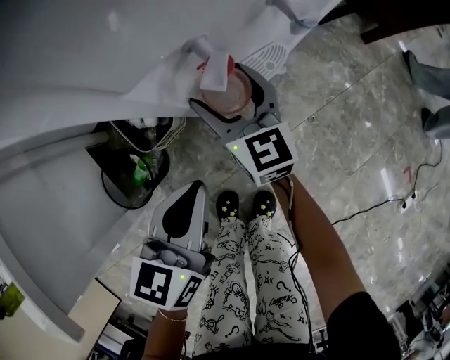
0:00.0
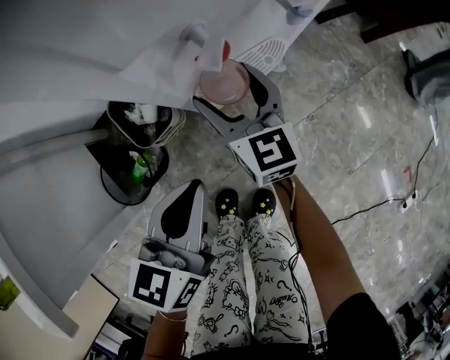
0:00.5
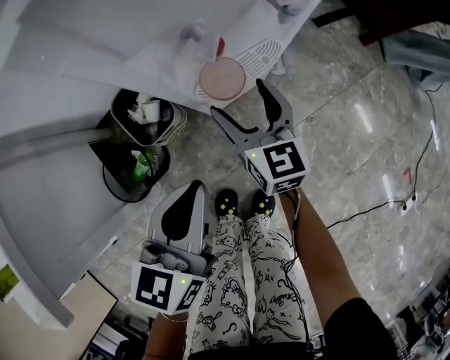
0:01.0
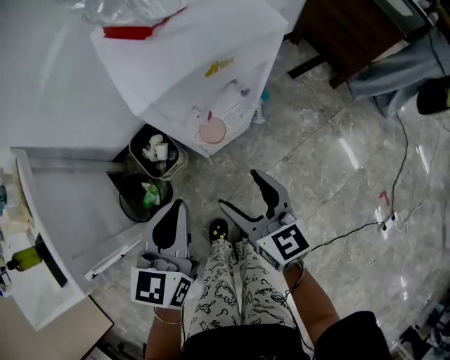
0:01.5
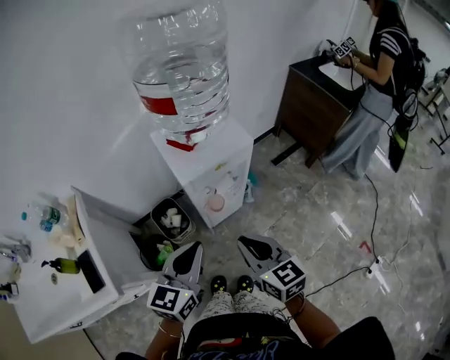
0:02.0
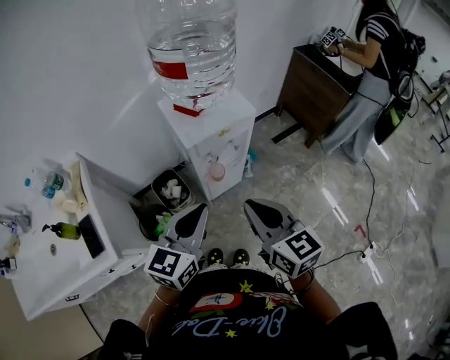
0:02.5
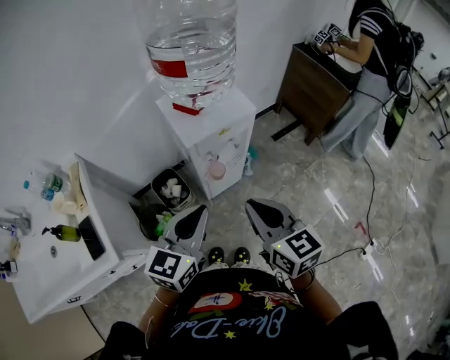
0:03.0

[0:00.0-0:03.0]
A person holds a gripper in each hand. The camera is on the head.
0:00.0 to 0:01.5: The right gripper goes approximately 25 cm backward and upward, while the left gripper is displaced upward by some 15 cm.
0:01.5 to 0:03.0: The right gripper is displaced upward by some 30 cm, and closes up; the left gripper is displaced upward and backward by some 25 cm.

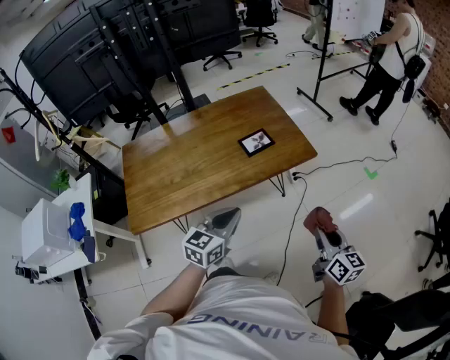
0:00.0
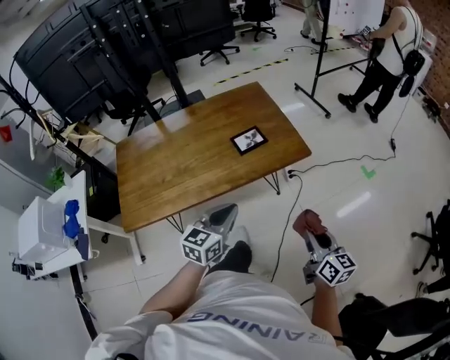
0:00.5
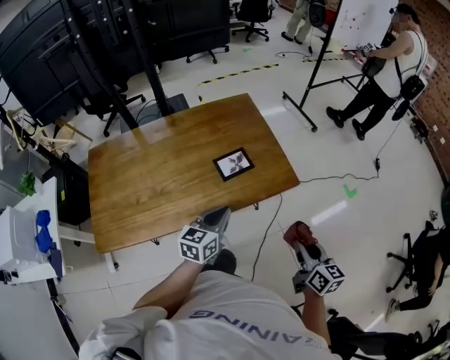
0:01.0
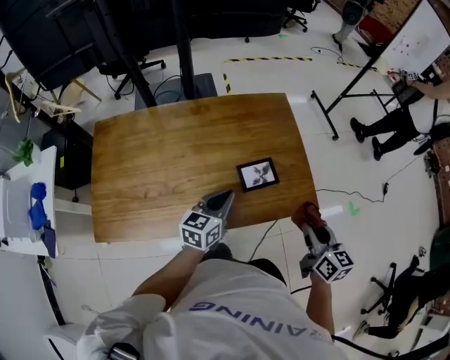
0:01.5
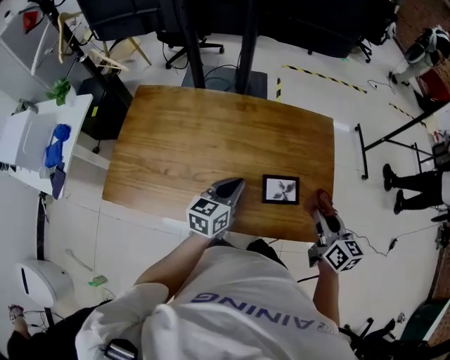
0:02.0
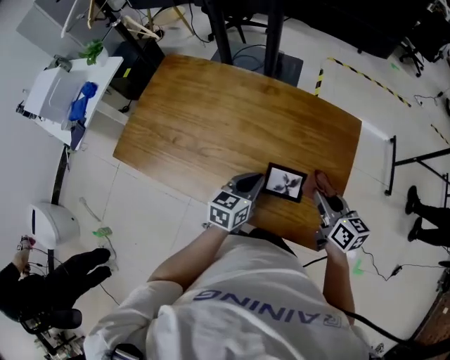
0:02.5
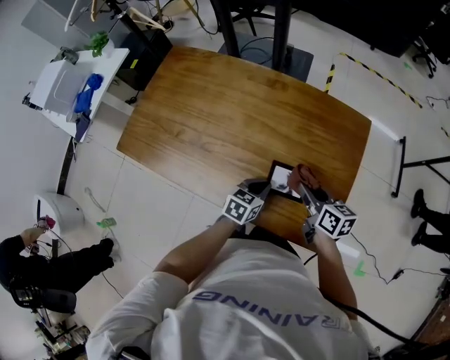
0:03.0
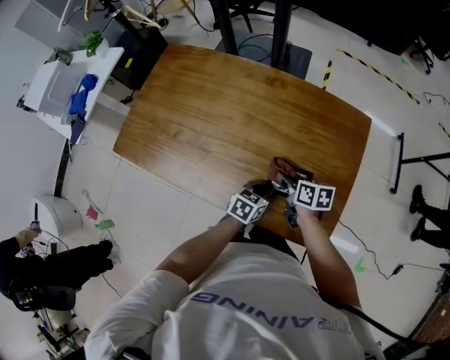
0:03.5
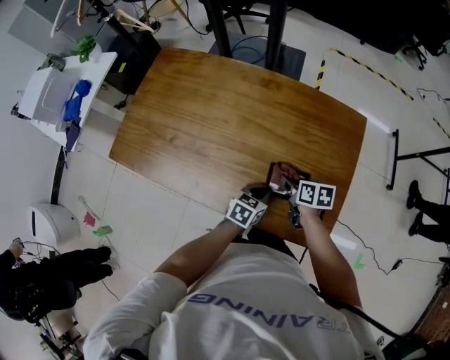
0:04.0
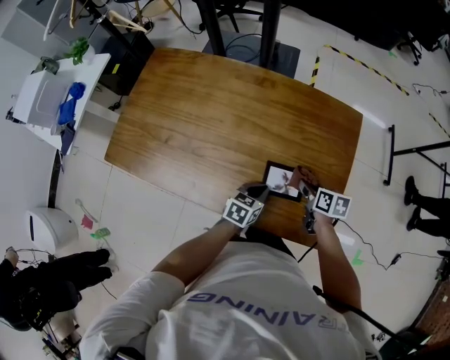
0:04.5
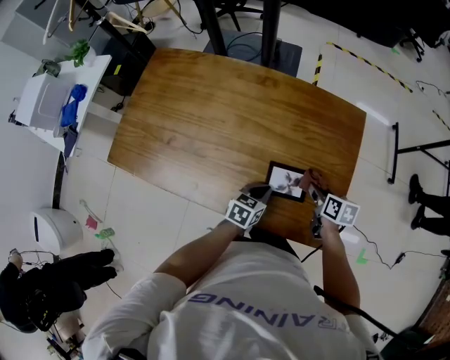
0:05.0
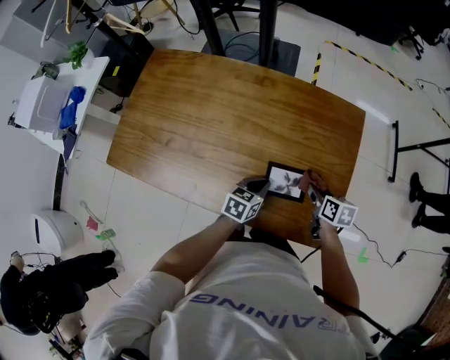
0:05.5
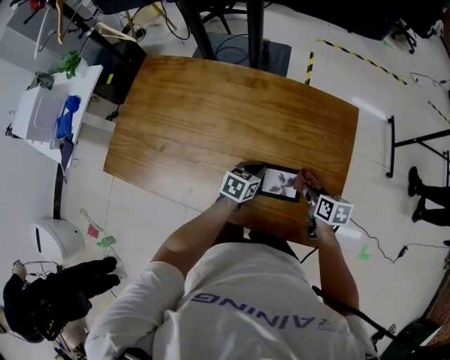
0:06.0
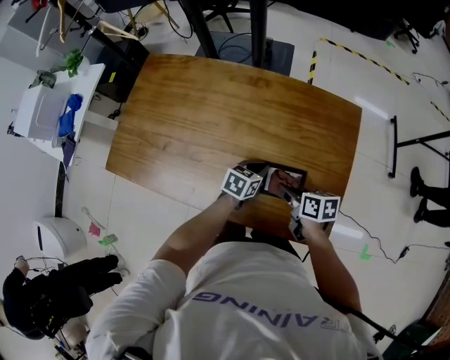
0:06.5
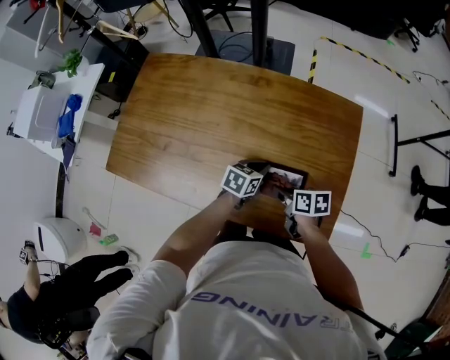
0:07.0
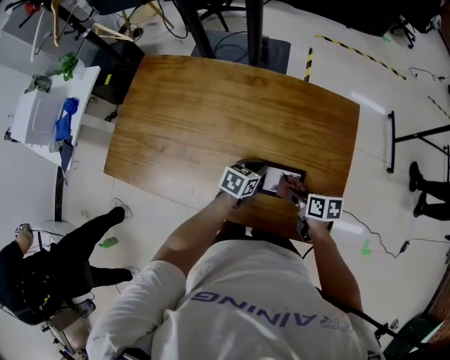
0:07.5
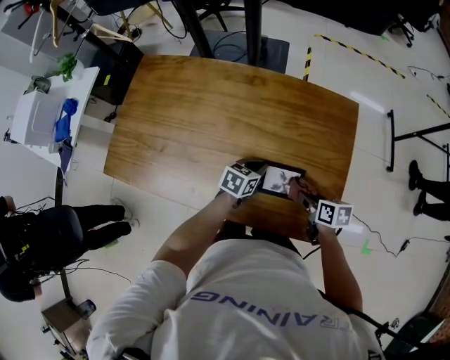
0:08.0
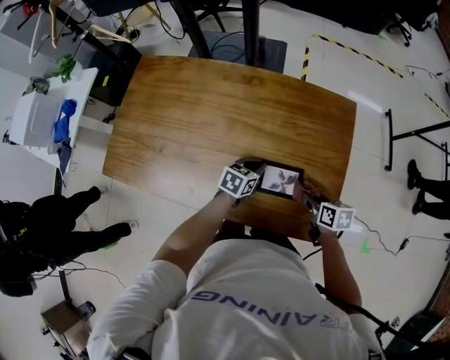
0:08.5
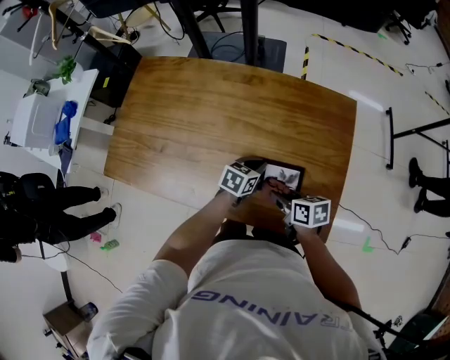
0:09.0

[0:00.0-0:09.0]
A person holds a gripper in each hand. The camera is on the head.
0:00.0 to 0:02.0: The left gripper ends up roughly 35 cm from where it was, and rotates about 40 degrees, while the right gripper shifts by some 40 cm, and swivels approximately 30 degrees.
0:02.0 to 0:04.5: The right gripper heads downward and forward, covering some 20 cm, and swivels some 40 degrees. Meanwhile the left gripper shifts approximately 20 cm downward and to the right, and turns by roughly 20 degrees.
0:04.5 to 0:07.0: The left gripper goes approximately 10 cm forward, while the right gripper is displaced to the left by some 10 cm.
0:07.0 to 0:09.0: The right gripper travels to the right and back again, some 15 cm each way.

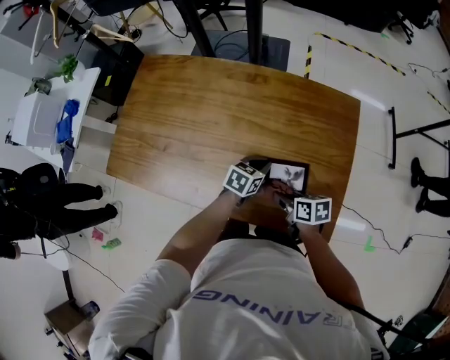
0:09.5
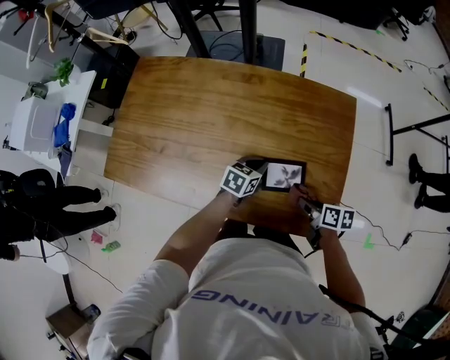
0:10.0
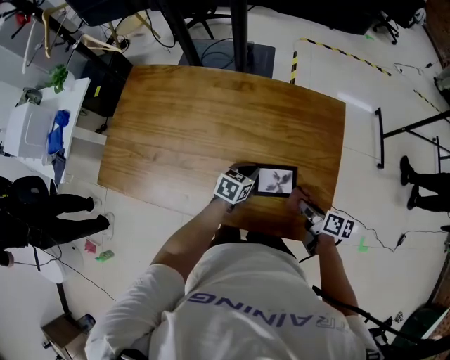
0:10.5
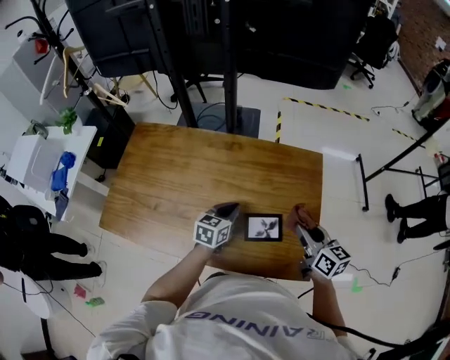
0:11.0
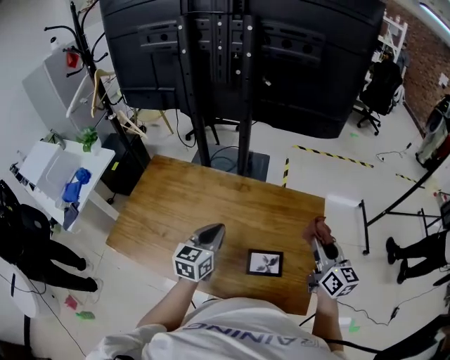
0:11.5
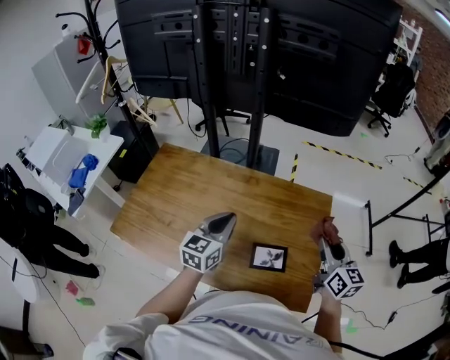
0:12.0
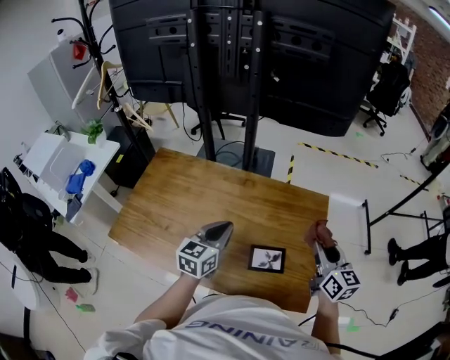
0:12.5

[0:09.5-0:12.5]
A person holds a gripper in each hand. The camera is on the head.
0:09.5 to 0:11.0: The left gripper travels upward by approximately 10 cm, while the right gripper is displaced upward and to the right by about 20 cm, and turns by approximately 40 degrees.
0:11.0 to 0:12.5: The left gripper travels upward by some 15 cm, while the right gripper travels upward by approximately 10 cm.

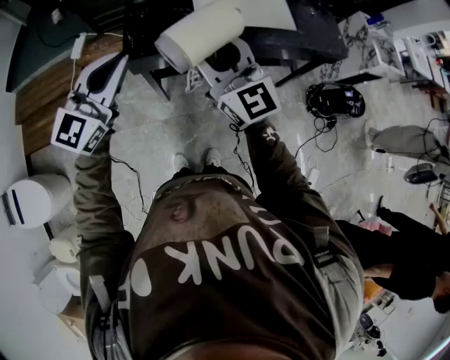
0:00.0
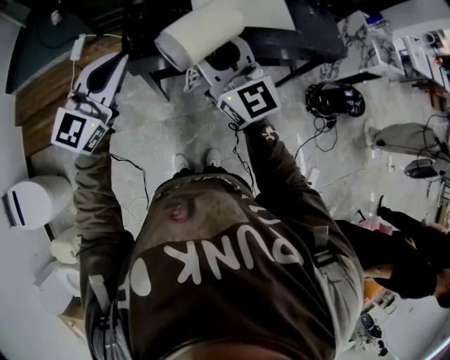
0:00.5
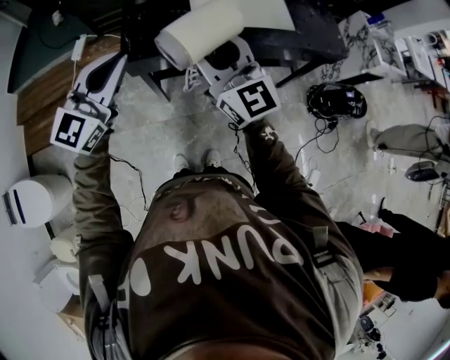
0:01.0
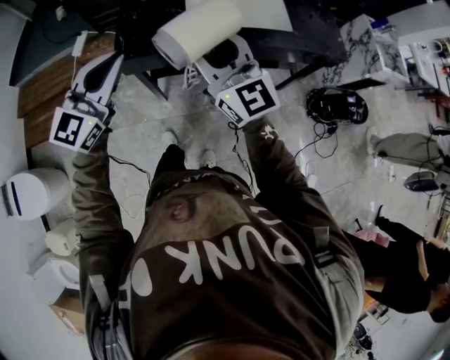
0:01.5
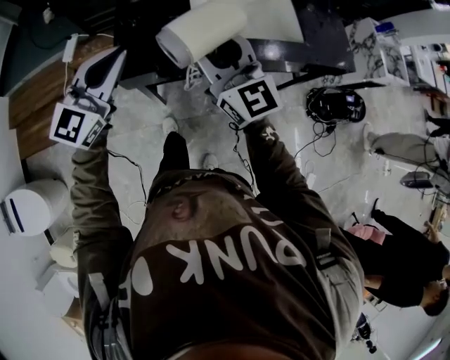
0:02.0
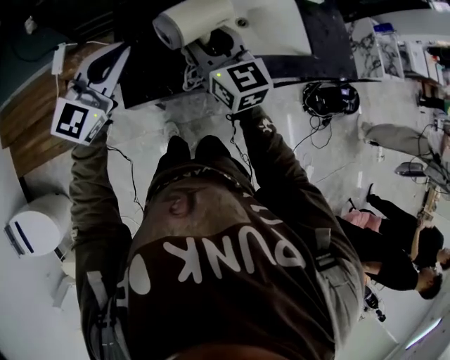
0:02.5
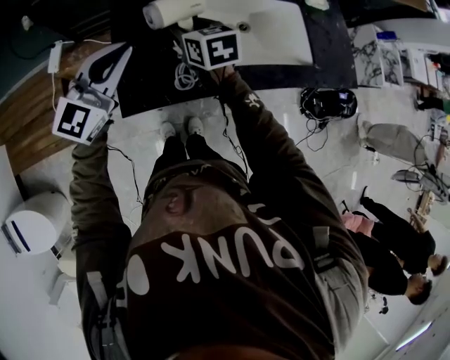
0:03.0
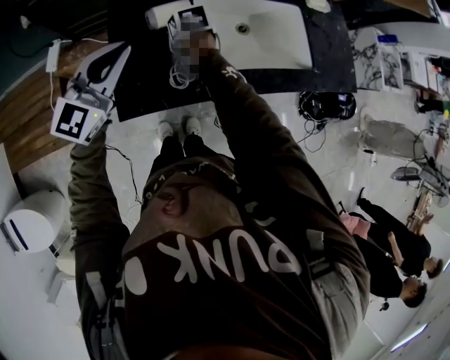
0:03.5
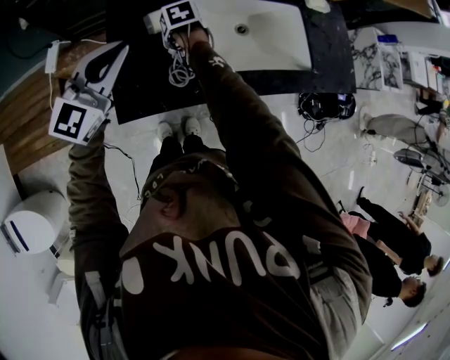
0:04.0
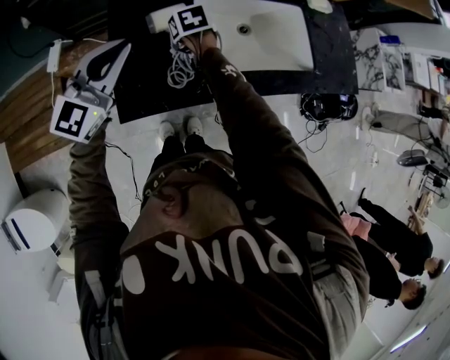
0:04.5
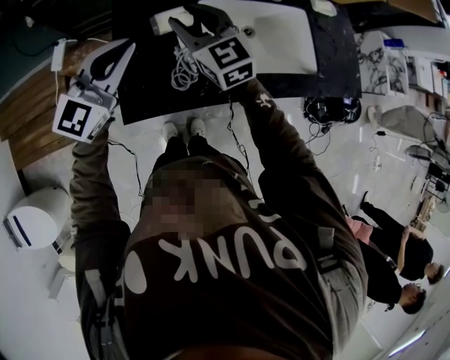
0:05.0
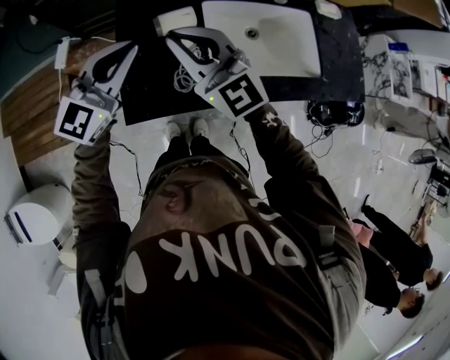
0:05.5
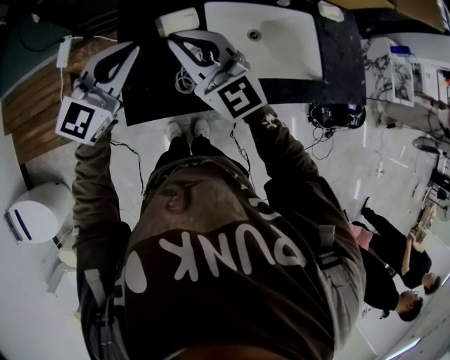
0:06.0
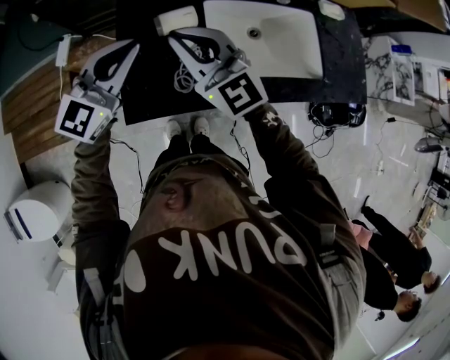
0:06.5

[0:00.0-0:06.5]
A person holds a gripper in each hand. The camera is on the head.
0:00.0 to 0:02.0: The two grippers go about 10 cm forward.
0:02.0 to 0:04.5: The right gripper shifts some 40 cm forward and downward, and angles its fingers downward, by some 70 degrees, while the left gripper moves forward, some 20 cm.
0:04.5 to 0:06.5: The right gripper heads upward and backward, covering approximately 25 cm, points its fingers some 60 degrees further upward, and closes its fingers.

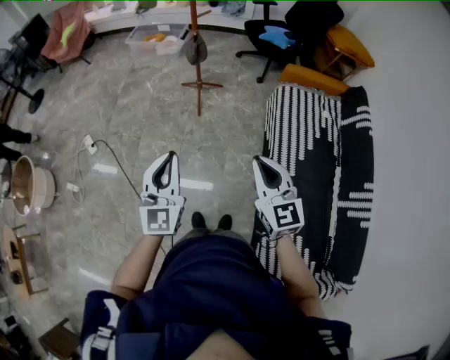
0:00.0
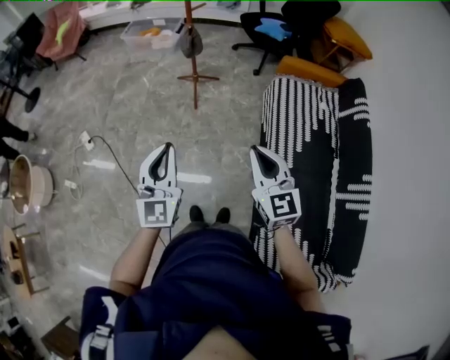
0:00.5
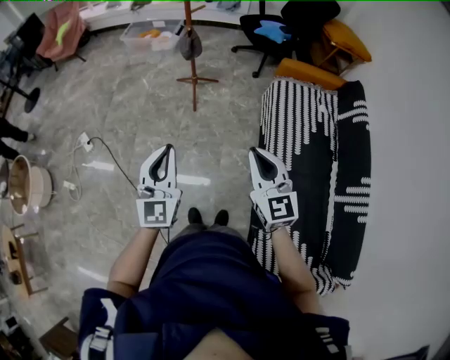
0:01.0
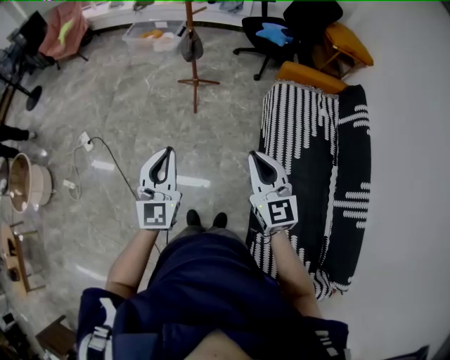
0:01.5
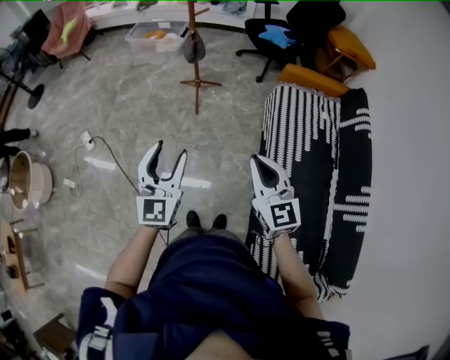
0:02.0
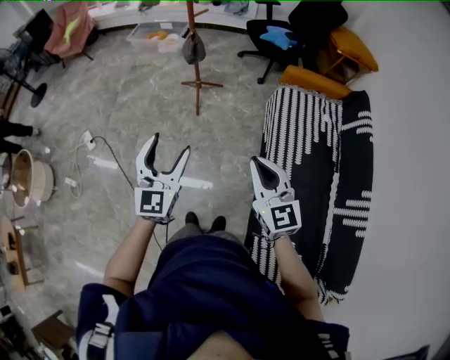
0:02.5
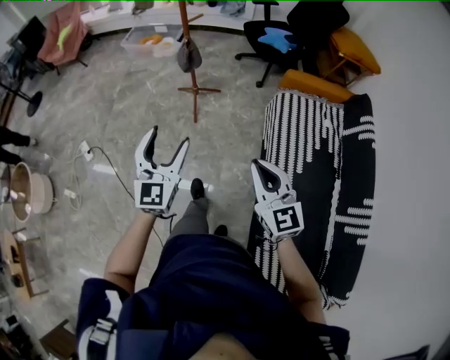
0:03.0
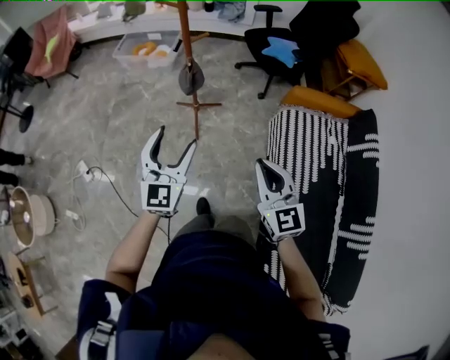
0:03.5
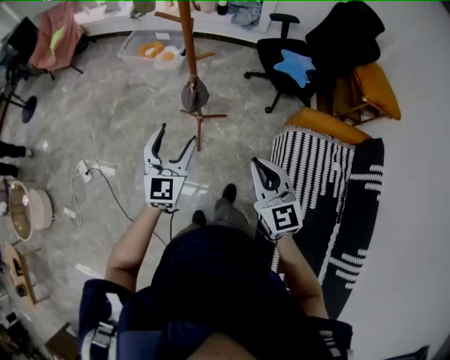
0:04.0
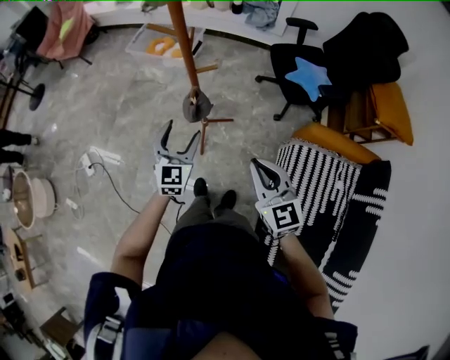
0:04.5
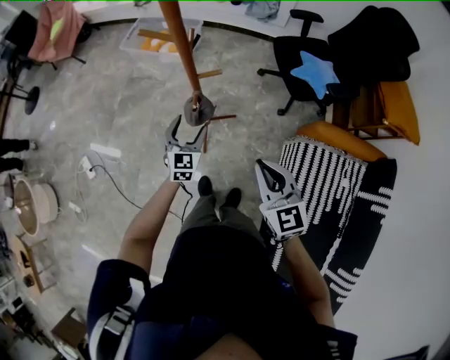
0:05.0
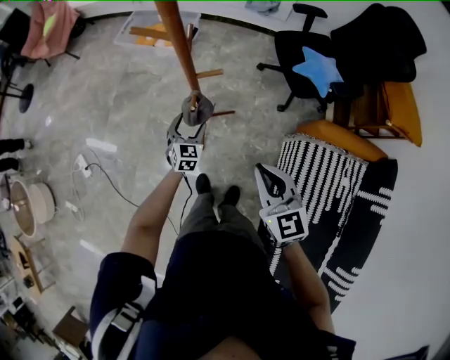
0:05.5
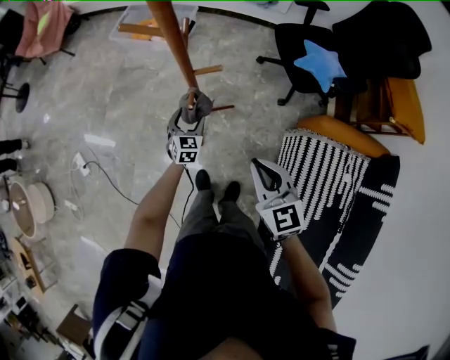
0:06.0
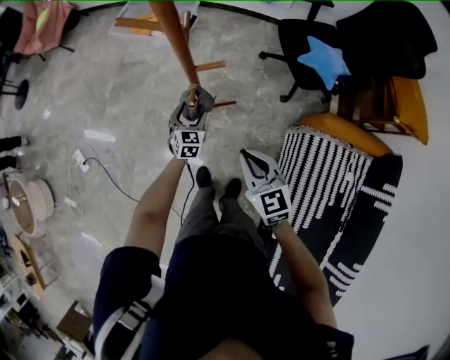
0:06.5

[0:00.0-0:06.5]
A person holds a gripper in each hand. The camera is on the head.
0:00.0 to 0:02.0: The left gripper opens up.
0:02.0 to 0:04.5: The two grippers travel together, forward, about 60 cm.
0:04.5 to 0:06.5: The left gripper goes roughly 35 cm downward and forward, and rotates some 20 degrees. Meanwhile the right gripper heads downward and forward, covering approximately 20 cm.
